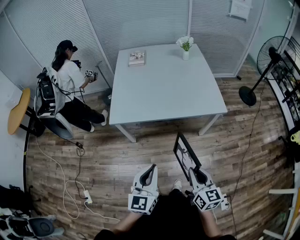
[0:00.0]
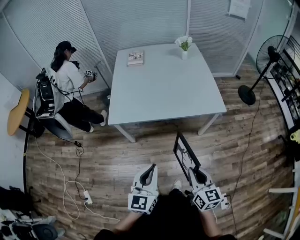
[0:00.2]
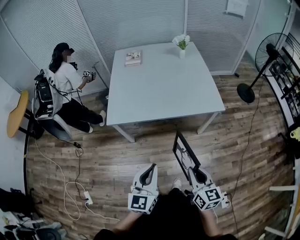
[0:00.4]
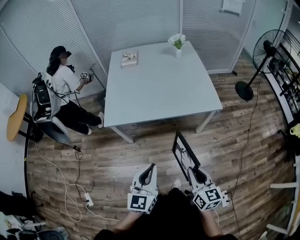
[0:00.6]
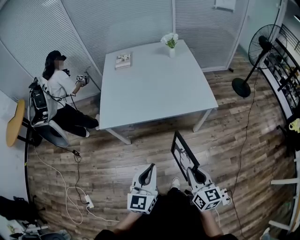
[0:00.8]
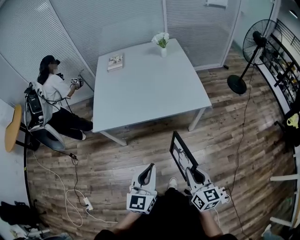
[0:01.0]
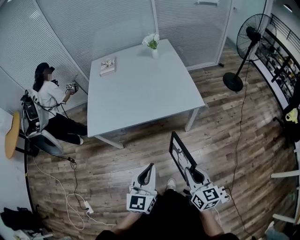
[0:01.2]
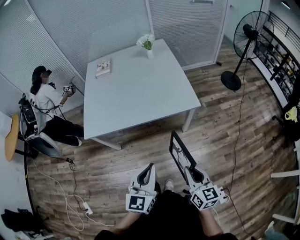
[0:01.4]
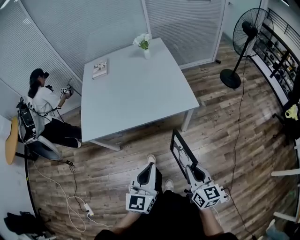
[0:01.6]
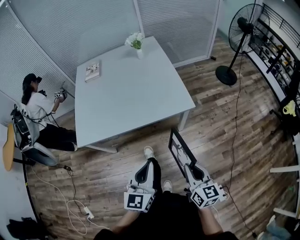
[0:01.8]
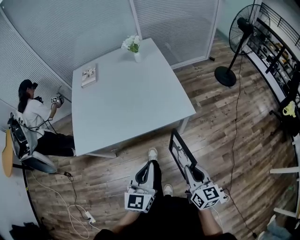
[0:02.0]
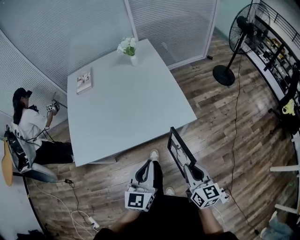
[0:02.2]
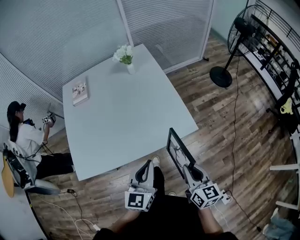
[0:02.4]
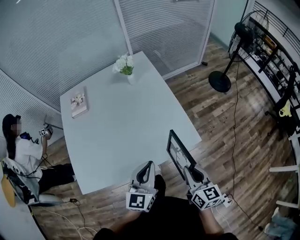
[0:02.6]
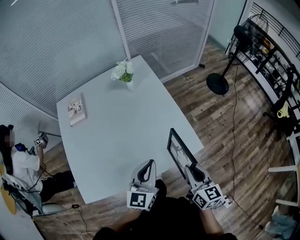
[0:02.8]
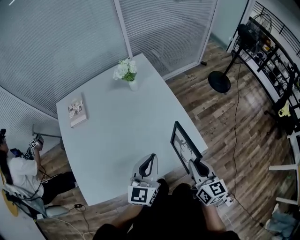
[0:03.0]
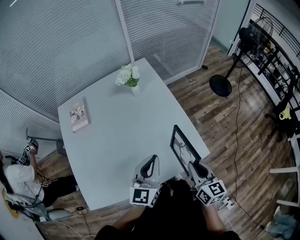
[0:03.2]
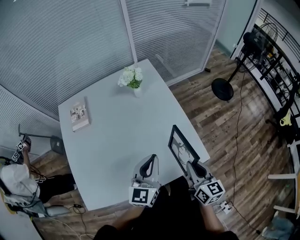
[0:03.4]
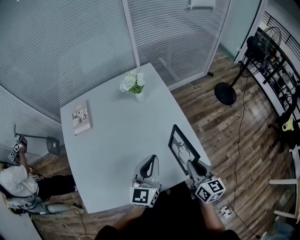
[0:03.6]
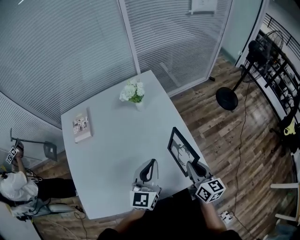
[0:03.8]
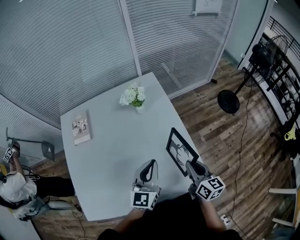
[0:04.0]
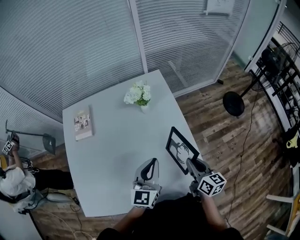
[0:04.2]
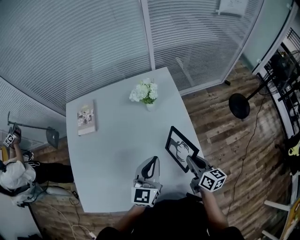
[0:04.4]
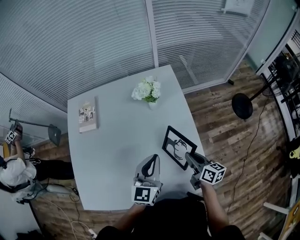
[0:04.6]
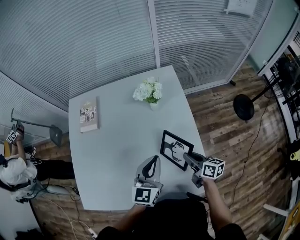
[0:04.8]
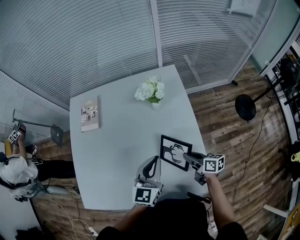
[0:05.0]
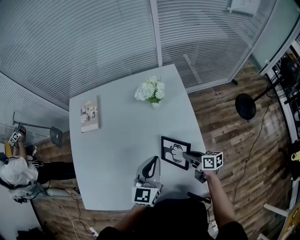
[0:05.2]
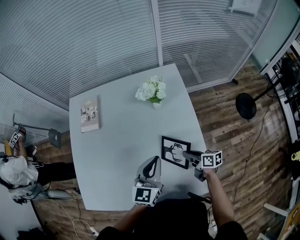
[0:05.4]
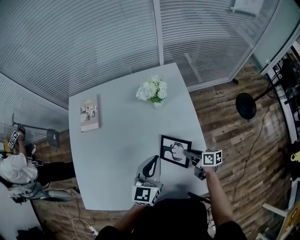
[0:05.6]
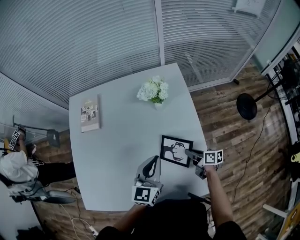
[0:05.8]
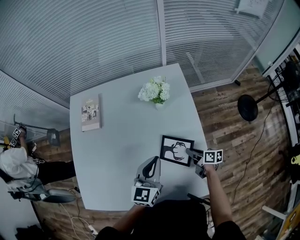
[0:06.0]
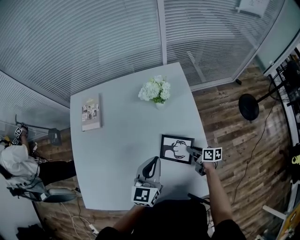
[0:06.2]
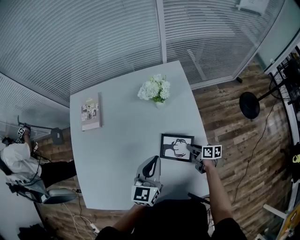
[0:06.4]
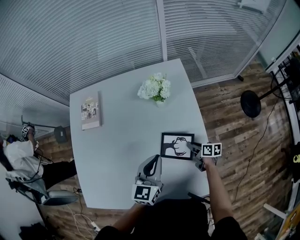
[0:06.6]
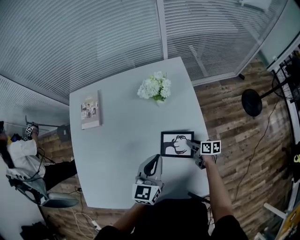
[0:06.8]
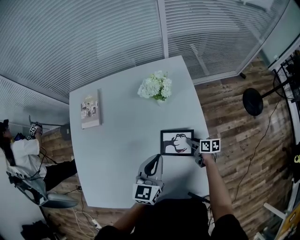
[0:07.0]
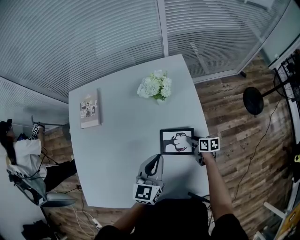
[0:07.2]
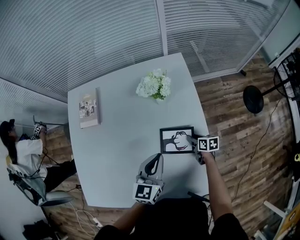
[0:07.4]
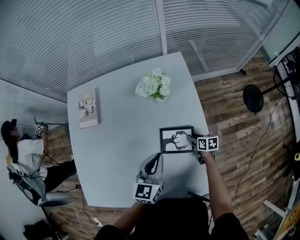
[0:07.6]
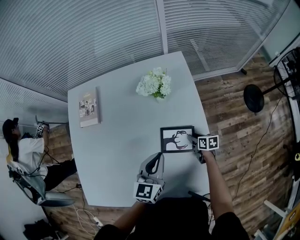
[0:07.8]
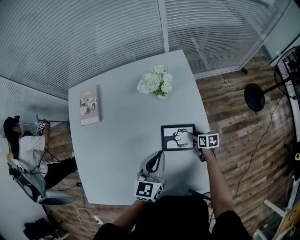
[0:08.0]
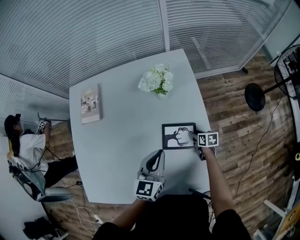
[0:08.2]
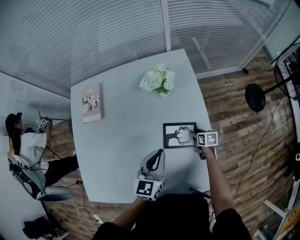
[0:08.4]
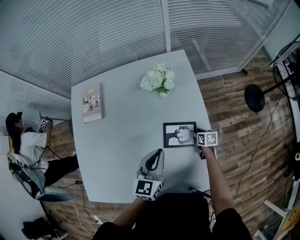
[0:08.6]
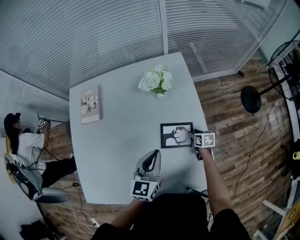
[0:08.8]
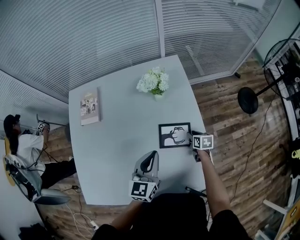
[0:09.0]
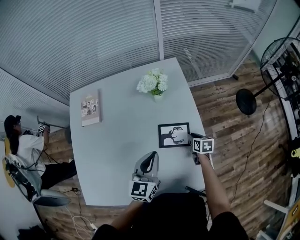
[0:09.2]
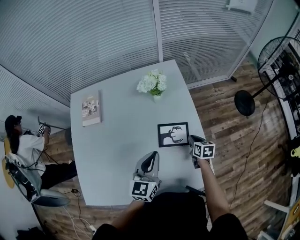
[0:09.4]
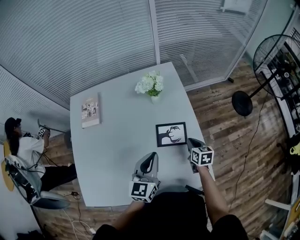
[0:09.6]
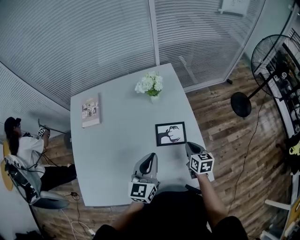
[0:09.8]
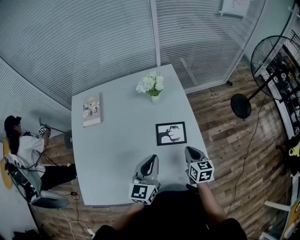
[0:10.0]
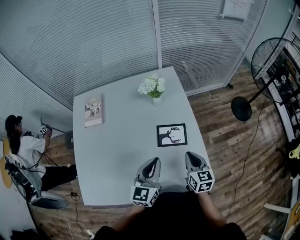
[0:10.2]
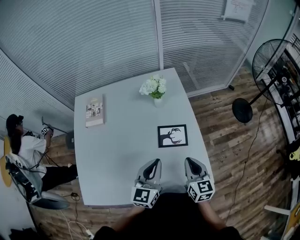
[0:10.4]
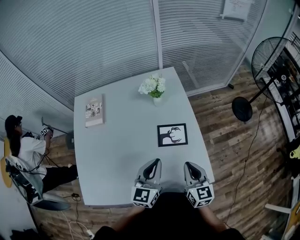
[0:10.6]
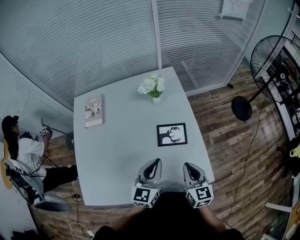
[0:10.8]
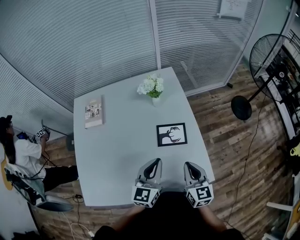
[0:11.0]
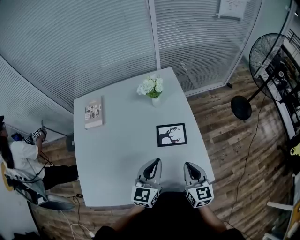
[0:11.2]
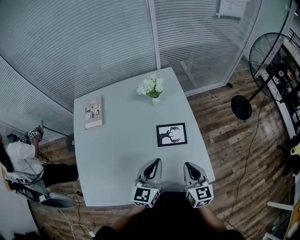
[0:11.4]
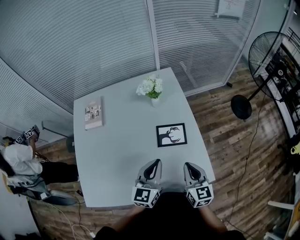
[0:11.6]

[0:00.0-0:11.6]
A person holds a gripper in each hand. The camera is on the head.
0:00.0 to 0:01.4: The grippers both shift to the right by roughly 20 cm.
0:01.4 to 0:02.8: Both grippers are carried forward, roughly 40 cm.
0:02.8 to 0:04.4: Both grippers travel together forward, approximately 25 cm. The right gripper changes its angle by some 20 degrees.
0:04.4 to 0:05.8: The left gripper shifts by about 5 cm; the right gripper heads downward and forward, covering roughly 15 cm, and rotates roughly 30 degrees.
0:05.8 to 0:07.2: The right gripper goes roughly 10 cm downward and forward.
0:07.2 to 0:08.8: There are only small adjustments of the grippers.
0:08.8 to 0:10.2: The left gripper travels backward by approximately 10 cm. Meanwhile the right gripper travels upward and backward by about 30 cm, changes its angle by some 30 degrees, and closes its fingers.
0:10.2 to 0:11.6: The right gripper heads backward, covering some 5 cm.

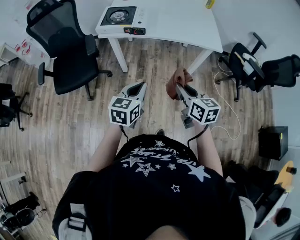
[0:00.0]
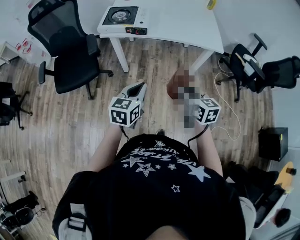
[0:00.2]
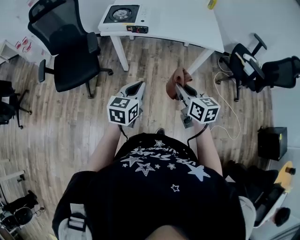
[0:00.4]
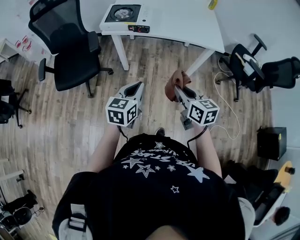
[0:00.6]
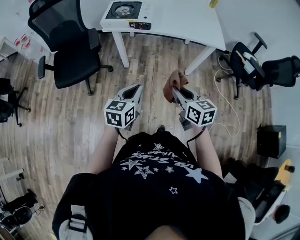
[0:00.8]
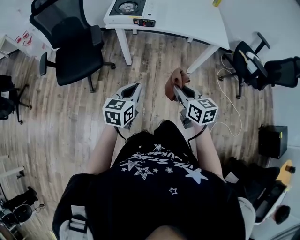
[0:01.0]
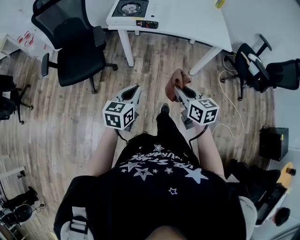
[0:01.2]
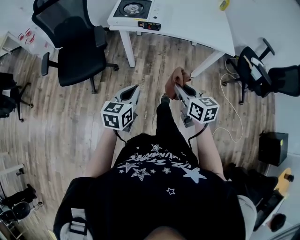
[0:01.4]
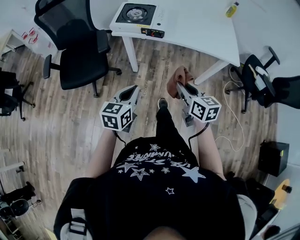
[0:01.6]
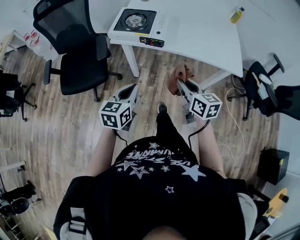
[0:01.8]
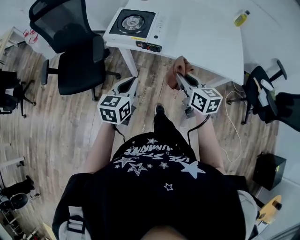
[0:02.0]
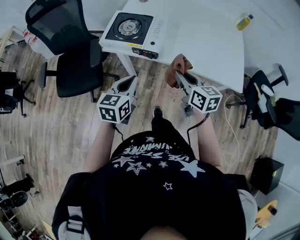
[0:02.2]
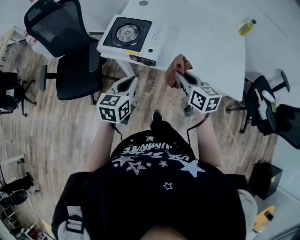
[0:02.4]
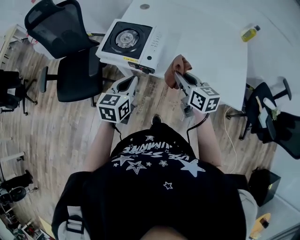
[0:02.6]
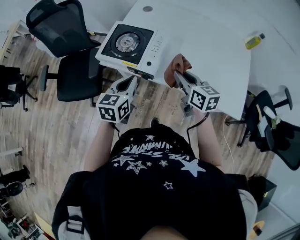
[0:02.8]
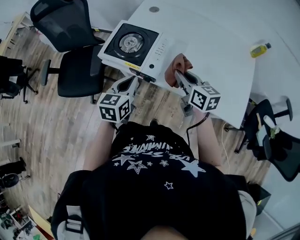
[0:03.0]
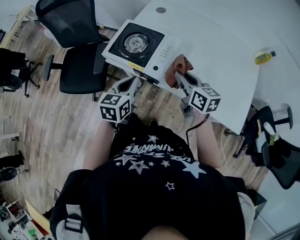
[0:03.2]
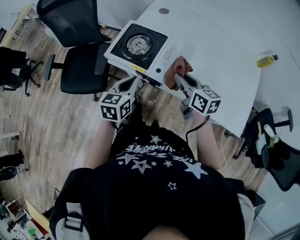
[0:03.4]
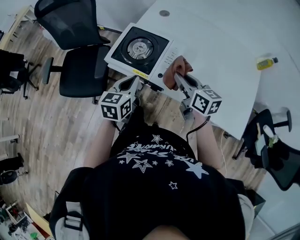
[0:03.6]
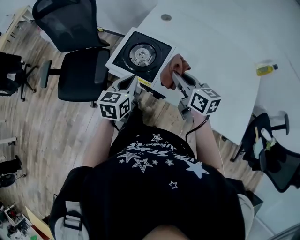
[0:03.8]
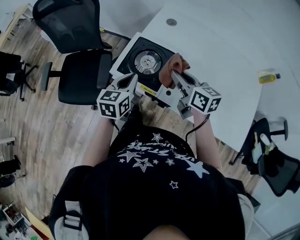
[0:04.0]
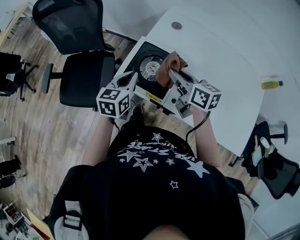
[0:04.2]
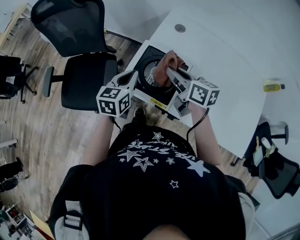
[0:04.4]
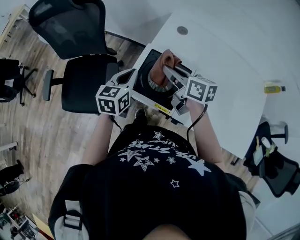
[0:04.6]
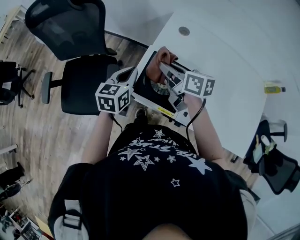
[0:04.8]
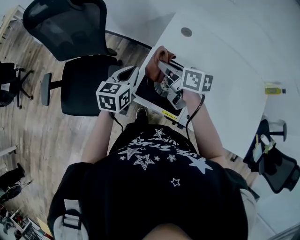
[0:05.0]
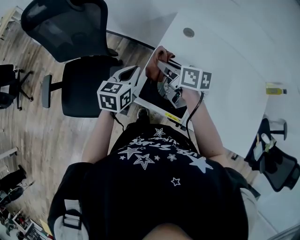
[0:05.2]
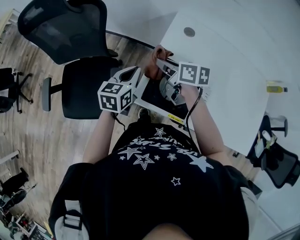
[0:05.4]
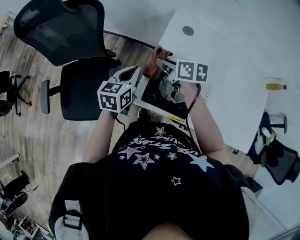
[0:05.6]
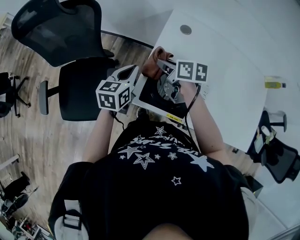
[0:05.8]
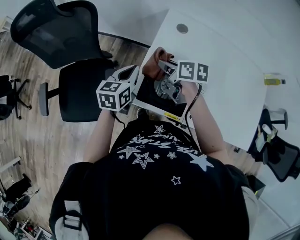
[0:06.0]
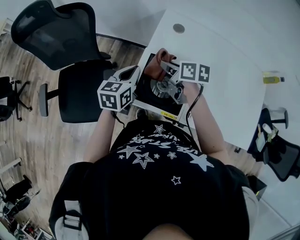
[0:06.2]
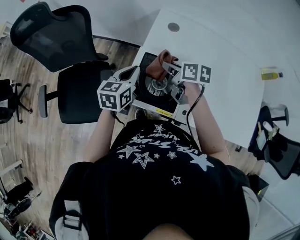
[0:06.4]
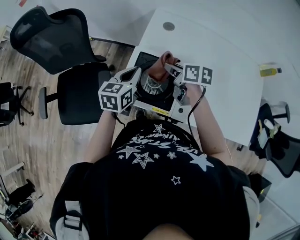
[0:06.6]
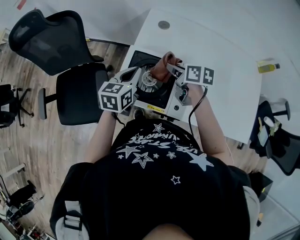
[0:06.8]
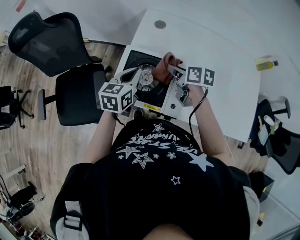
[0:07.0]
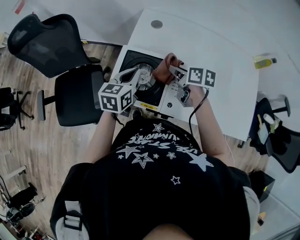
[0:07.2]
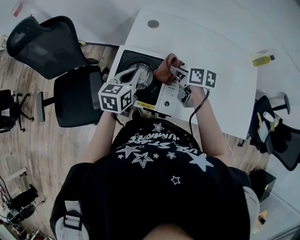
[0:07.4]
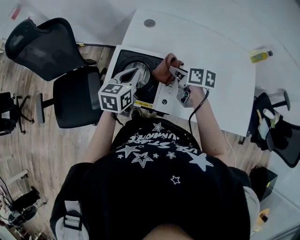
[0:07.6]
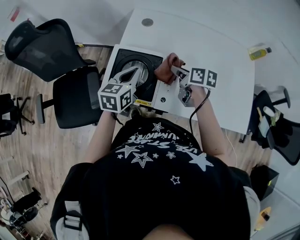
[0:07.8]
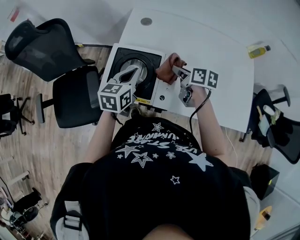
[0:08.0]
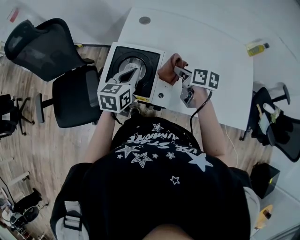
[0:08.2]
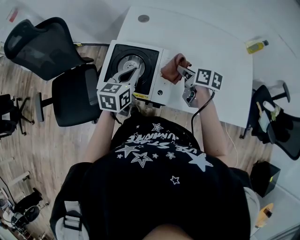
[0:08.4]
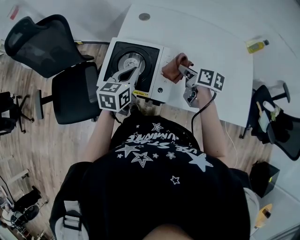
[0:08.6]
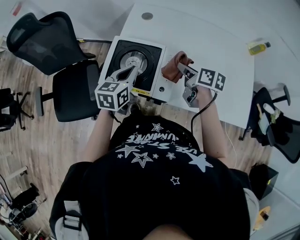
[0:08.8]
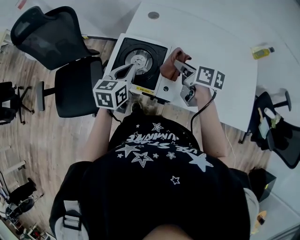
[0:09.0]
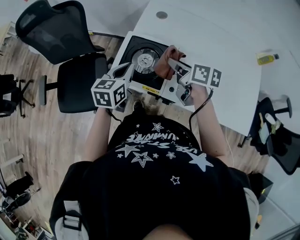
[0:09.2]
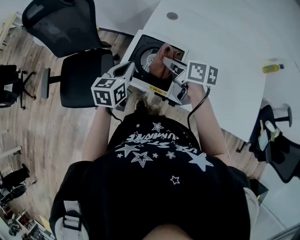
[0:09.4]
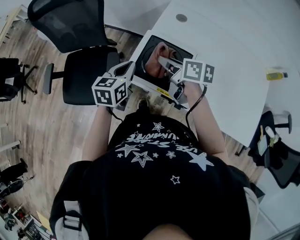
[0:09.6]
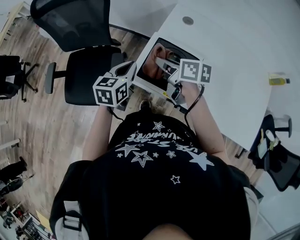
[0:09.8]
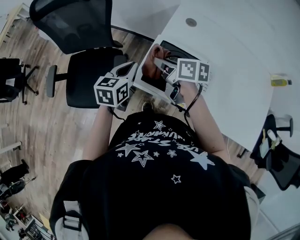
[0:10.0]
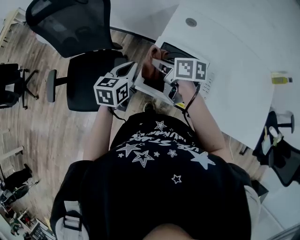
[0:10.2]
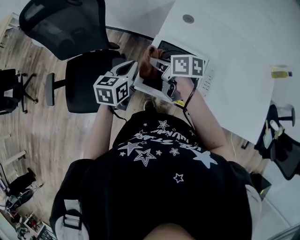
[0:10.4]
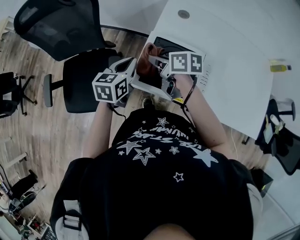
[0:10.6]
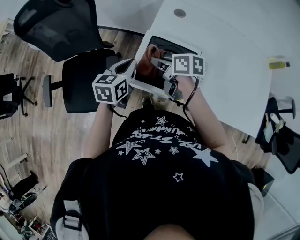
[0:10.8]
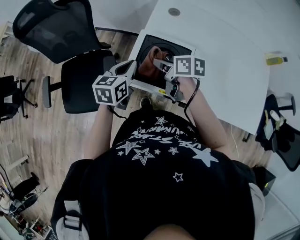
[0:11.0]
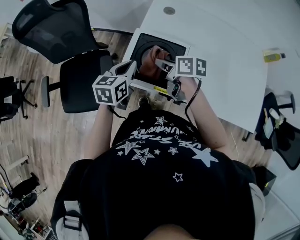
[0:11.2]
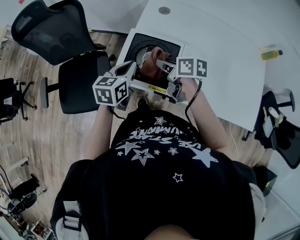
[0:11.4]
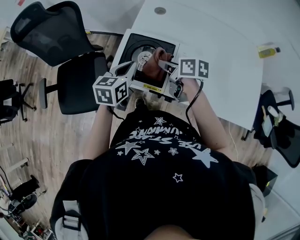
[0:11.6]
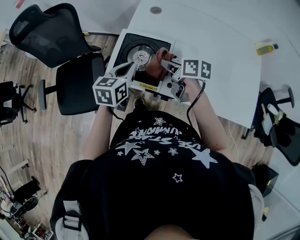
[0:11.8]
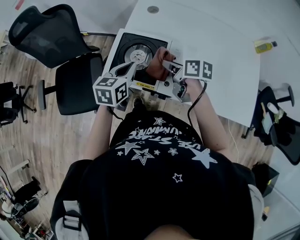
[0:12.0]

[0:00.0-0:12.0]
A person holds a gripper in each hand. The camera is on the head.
0:00.0 to 0:01.6: The left gripper travels to the left by roughly 10 cm. The right gripper goes some 10 cm forward and to the left.
0:01.6 to 0:03.0: Both grippers travel together forward, approximately 35 cm.
0:03.0 to 0:04.4: Both grippers travel together forward and to the left, roughly 25 cm.
0:04.4 to 0:06.0: The right gripper goes some 15 cm forward, downward and to the left, and turns by roughly 20 degrees, while the left gripper goes roughly 10 cm forward.
0:06.0 to 0:07.6: Both grippers move to the right and backward, roughly 20 cm.
0:07.6 to 0:09.0: The left gripper ends up roughly 5 cm from where it was; the right gripper changes place by roughly 5 cm.
0:09.0 to 0:10.4: The left gripper is displaced to the left and forward by about 15 cm. Meanwhile the right gripper moves to the left and forward, some 25 cm.
0:10.4 to 0:12.0: The grippers both shift to the right and backward by roughly 20 cm.
